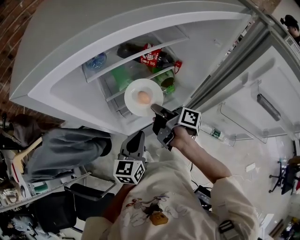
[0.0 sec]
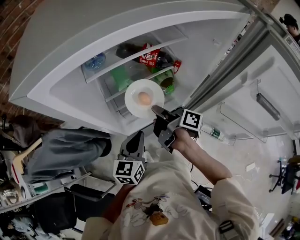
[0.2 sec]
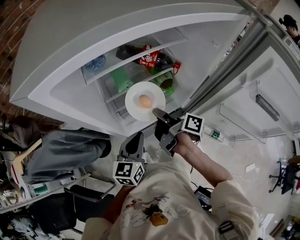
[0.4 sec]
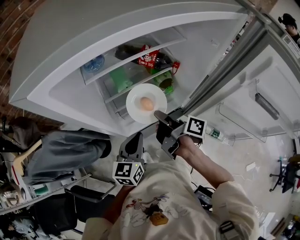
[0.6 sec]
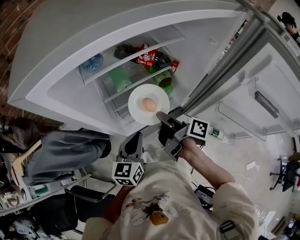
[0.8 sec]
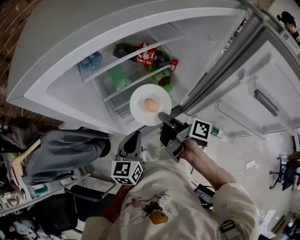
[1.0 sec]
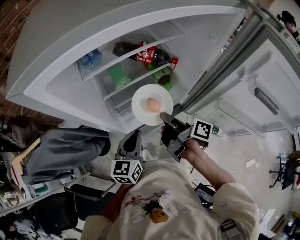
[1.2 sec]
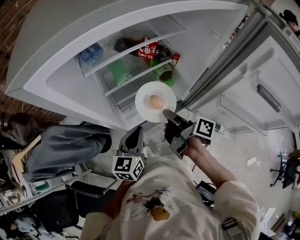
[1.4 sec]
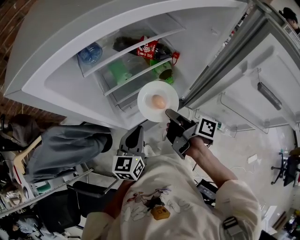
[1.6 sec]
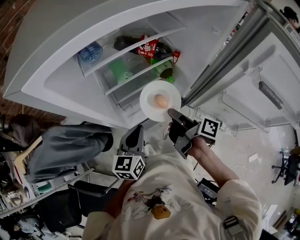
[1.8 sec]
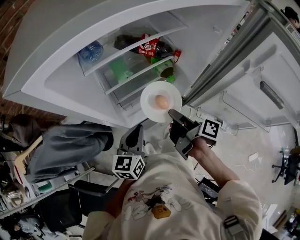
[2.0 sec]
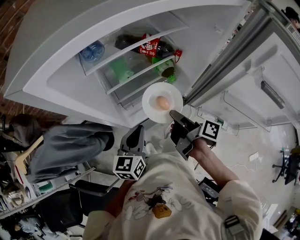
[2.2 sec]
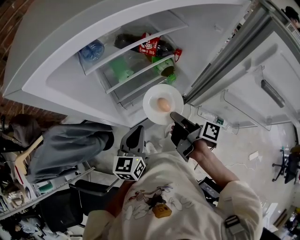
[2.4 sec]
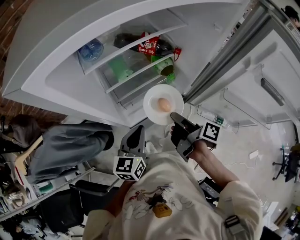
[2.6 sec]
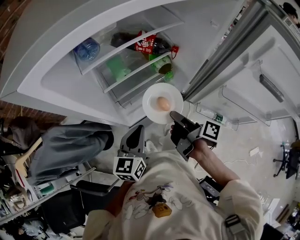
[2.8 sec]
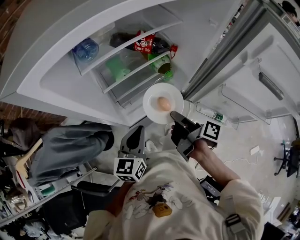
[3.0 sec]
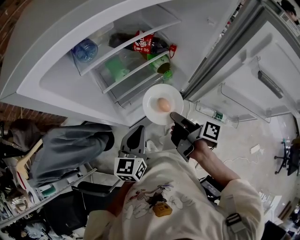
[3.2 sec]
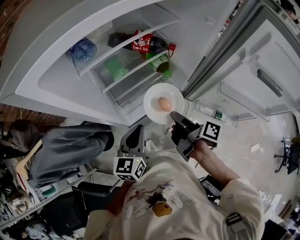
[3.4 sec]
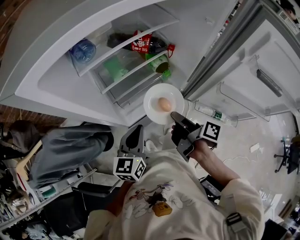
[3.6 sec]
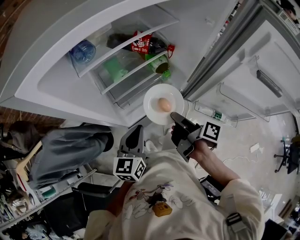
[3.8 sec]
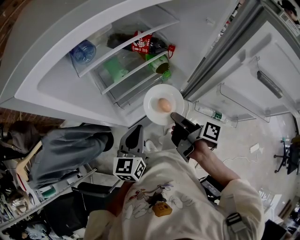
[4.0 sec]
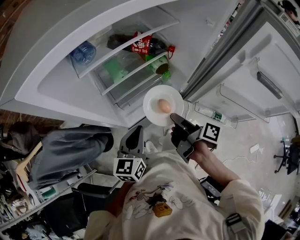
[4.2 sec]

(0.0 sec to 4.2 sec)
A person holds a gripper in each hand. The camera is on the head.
0.0 sec - 1.4 sec: The right gripper goes some 5 cm backward.
1.4 sec - 2.8 sec: The grippers stay close to where they were, moving slightly.
2.8 sec - 4.2 sec: Neither gripper changes place.

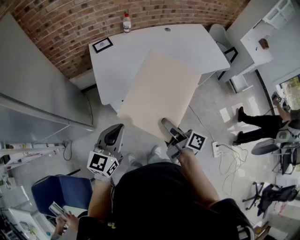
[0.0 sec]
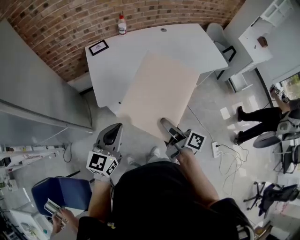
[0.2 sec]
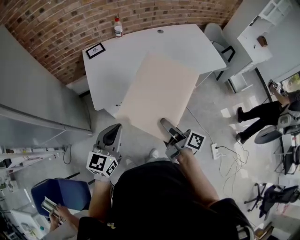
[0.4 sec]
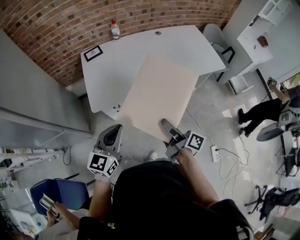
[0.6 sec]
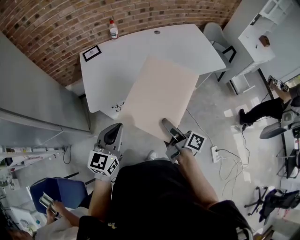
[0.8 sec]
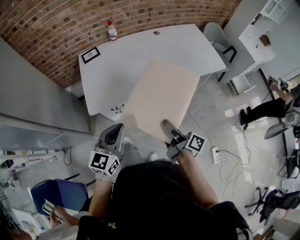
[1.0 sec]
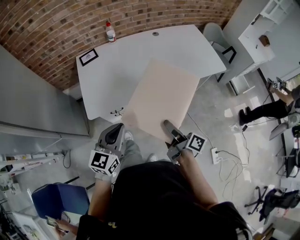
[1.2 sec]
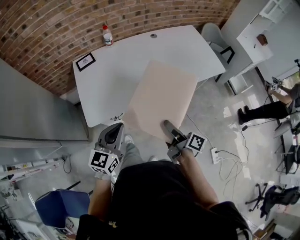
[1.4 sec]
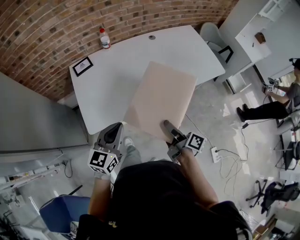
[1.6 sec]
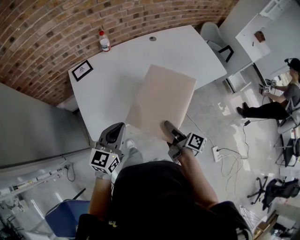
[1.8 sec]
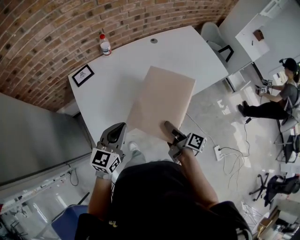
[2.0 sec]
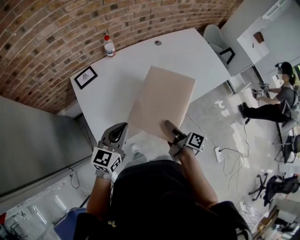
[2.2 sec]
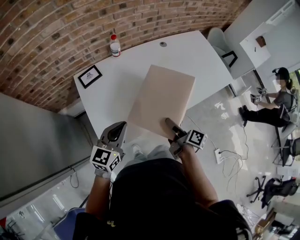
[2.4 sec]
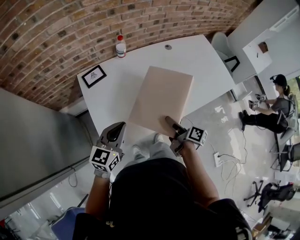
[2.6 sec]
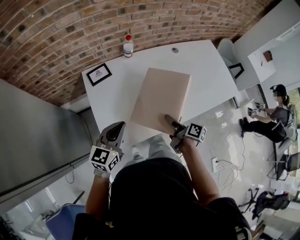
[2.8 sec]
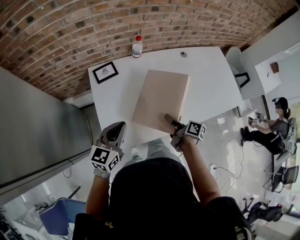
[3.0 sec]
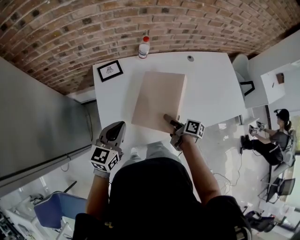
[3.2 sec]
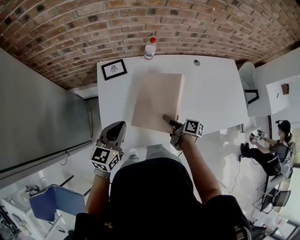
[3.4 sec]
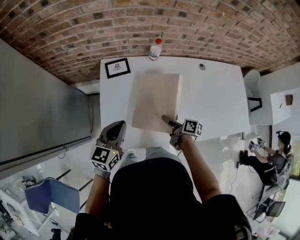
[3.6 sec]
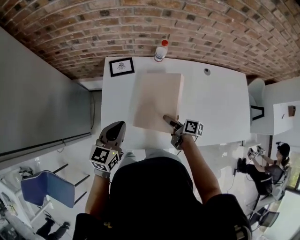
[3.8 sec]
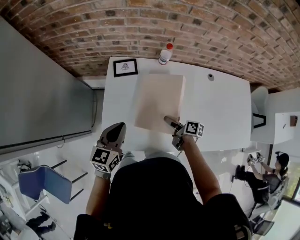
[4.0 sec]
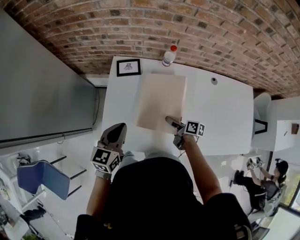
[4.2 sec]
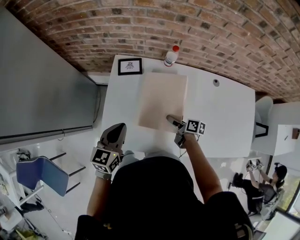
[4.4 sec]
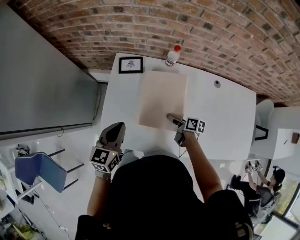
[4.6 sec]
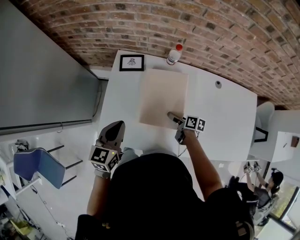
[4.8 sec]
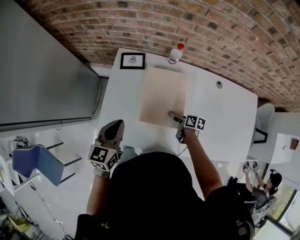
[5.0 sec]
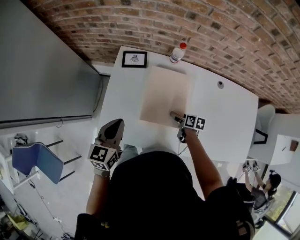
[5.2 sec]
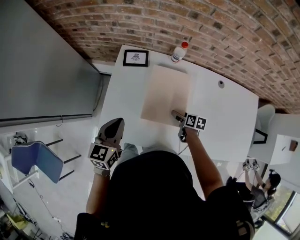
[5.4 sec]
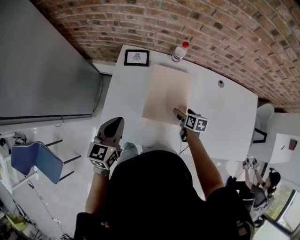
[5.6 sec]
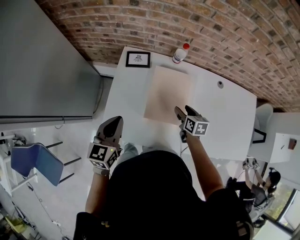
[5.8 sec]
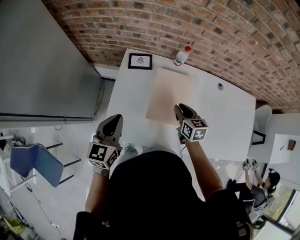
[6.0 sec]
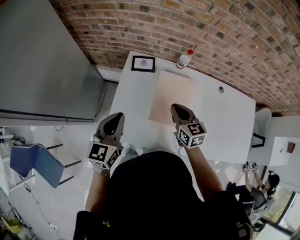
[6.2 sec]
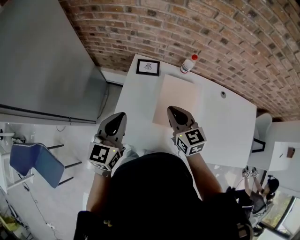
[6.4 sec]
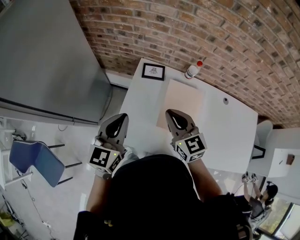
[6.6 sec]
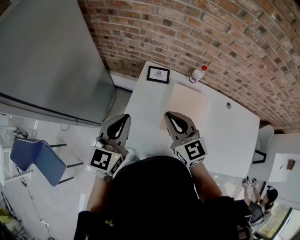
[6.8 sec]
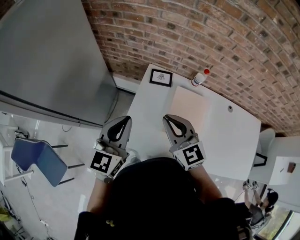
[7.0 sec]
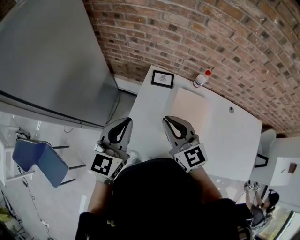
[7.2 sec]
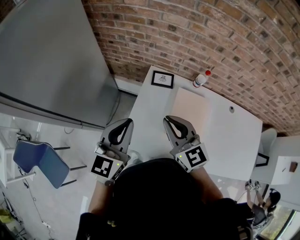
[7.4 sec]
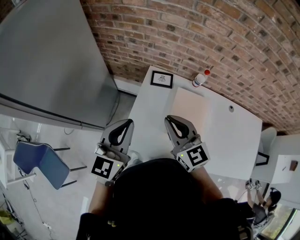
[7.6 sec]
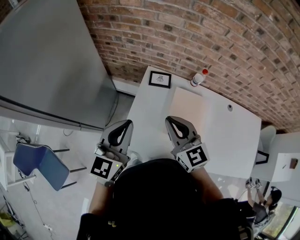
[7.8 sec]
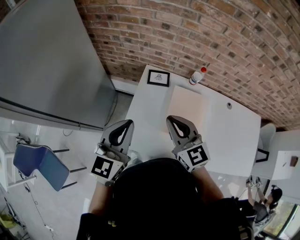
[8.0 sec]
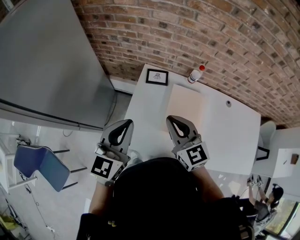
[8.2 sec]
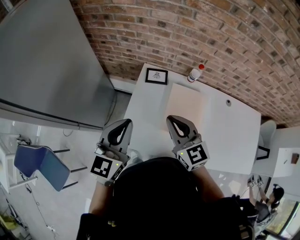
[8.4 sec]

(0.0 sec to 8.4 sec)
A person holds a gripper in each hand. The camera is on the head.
0.0 sec - 1.4 sec: The left gripper is displaced forward and to the right by roughly 20 cm. Meanwhile the right gripper shifts approximately 15 cm to the right and forward.
1.4 sec - 2.8 sec: Both grippers move forward and to the left, approximately 25 cm.
2.8 sec - 4.2 sec: The left gripper ends up about 5 cm from where it was, and turns by approximately 30 degrees. Meanwhile the right gripper ends up approximately 20 cm from where it was, and changes its angle by roughly 40 degrees.
4.2 sec - 5.6 sec: The right gripper shifts approximately 5 cm to the right, and turns by some 30 degrees.
5.6 sec - 7.0 sec: The right gripper moves upward and to the left, roughly 40 cm, tips its fingers upward by roughly 40 degrees, and closes. The left gripper goes some 15 cm upward and to the left.
7.0 sec - 8.4 sec: The grippers make only small movements.

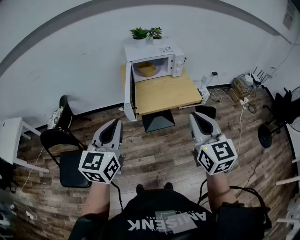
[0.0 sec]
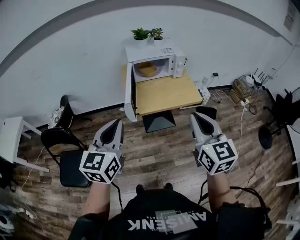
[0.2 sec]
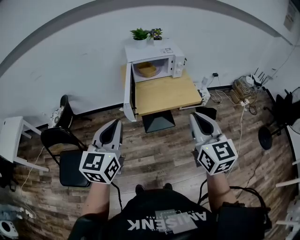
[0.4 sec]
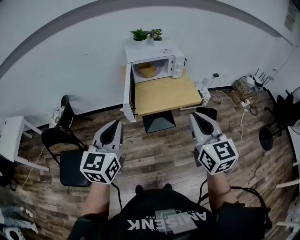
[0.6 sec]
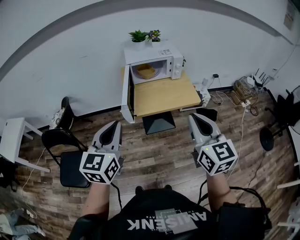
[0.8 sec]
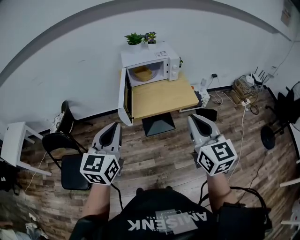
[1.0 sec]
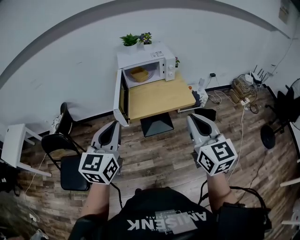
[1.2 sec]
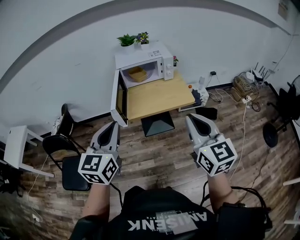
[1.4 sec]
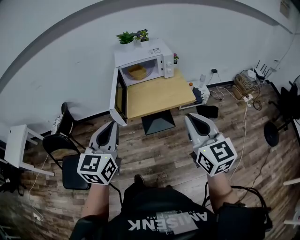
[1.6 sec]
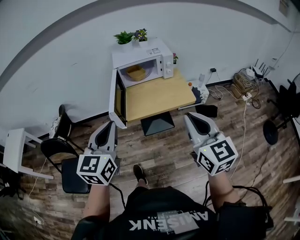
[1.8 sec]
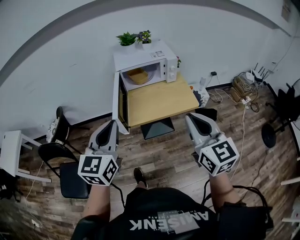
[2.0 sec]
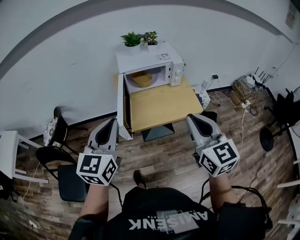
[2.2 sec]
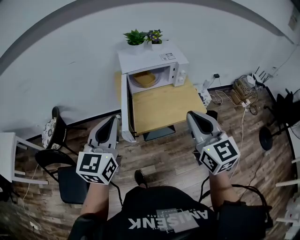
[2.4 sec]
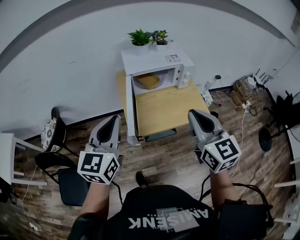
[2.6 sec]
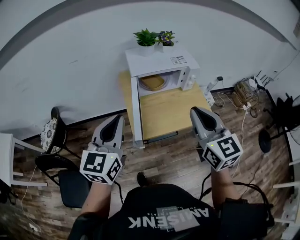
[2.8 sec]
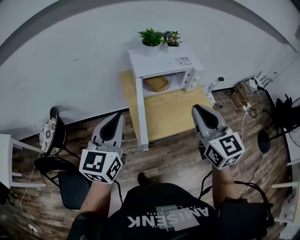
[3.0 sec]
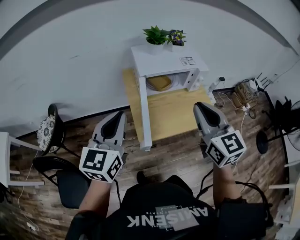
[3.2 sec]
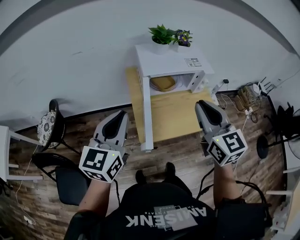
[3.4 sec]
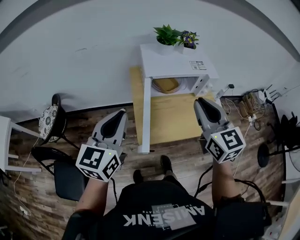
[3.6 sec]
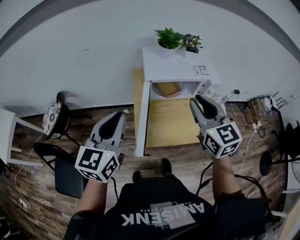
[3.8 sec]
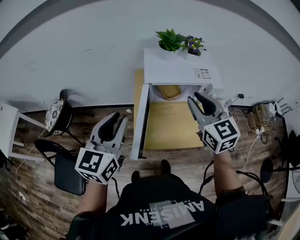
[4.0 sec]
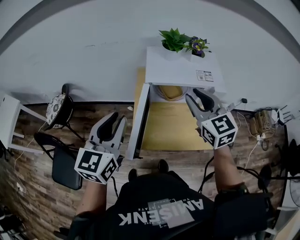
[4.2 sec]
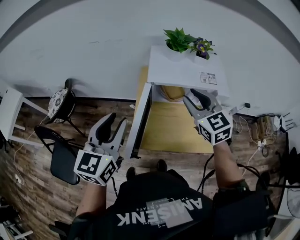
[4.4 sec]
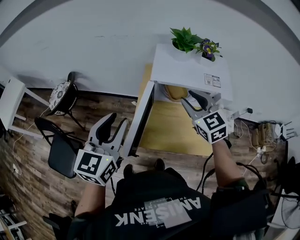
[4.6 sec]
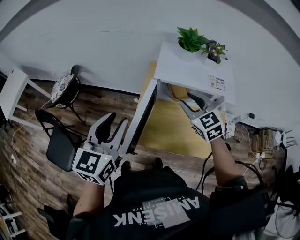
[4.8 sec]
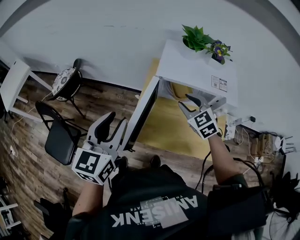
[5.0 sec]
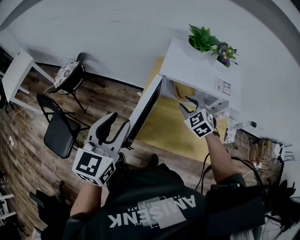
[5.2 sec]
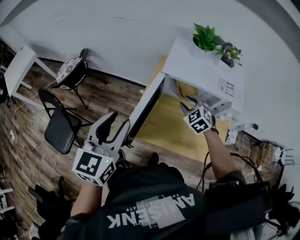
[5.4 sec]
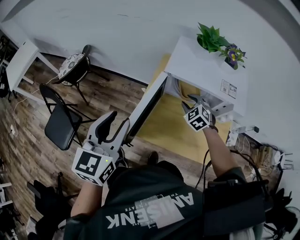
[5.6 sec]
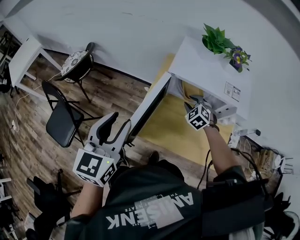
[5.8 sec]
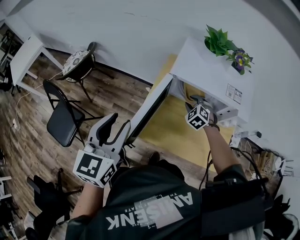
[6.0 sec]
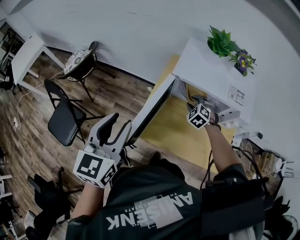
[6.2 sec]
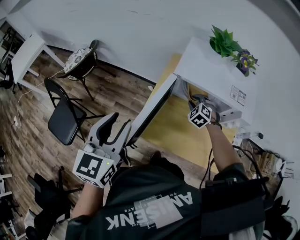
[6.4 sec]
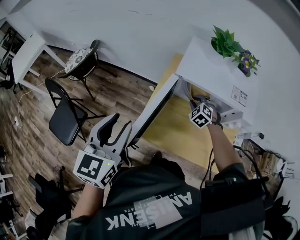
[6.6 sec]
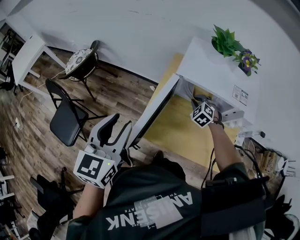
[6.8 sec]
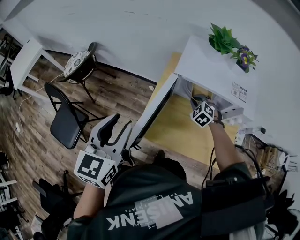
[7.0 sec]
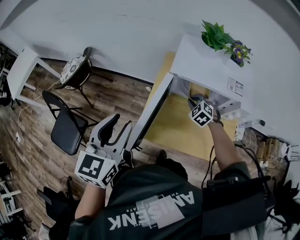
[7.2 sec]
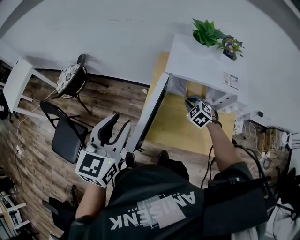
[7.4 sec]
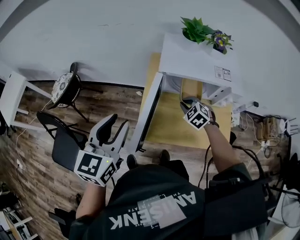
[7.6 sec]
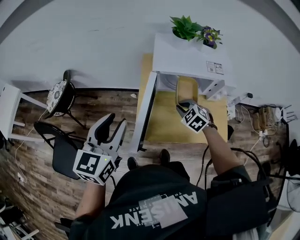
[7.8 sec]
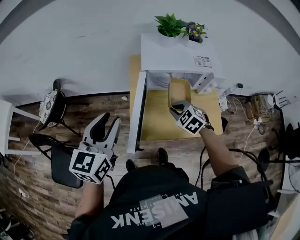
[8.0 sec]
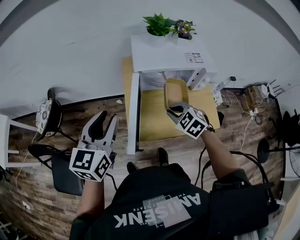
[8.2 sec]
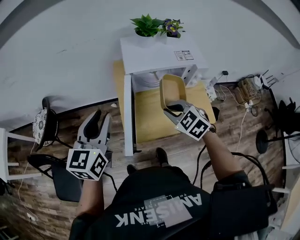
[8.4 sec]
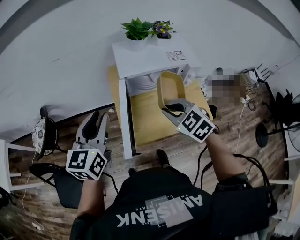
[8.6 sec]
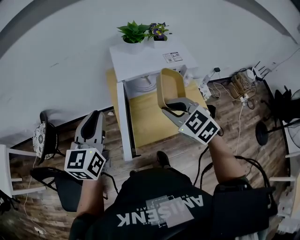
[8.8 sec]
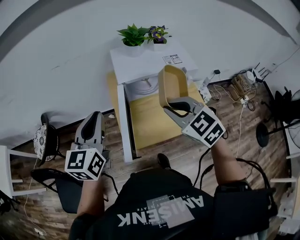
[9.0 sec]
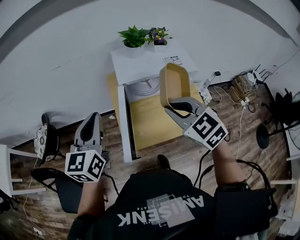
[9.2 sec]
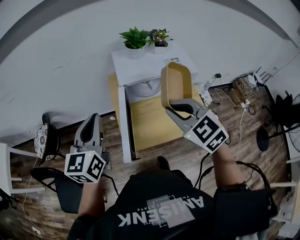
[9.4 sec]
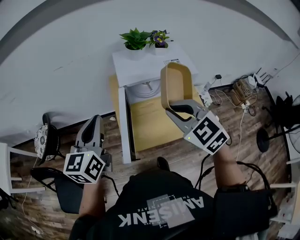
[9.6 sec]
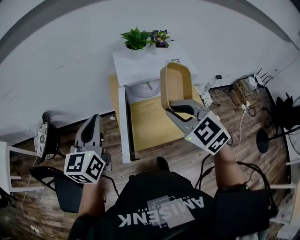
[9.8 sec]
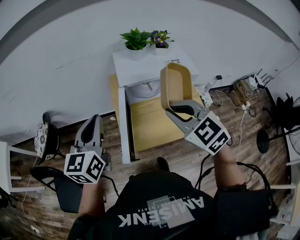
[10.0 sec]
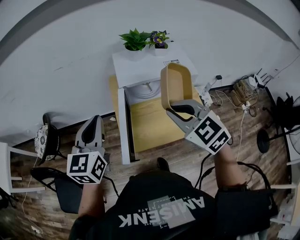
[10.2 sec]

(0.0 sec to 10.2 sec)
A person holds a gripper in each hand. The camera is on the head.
0.0 sec - 1.4 sec: The two grippers go about 10 cm to the right.
1.4 sec - 3.0 sec: The grippers both shift forward and to the left by approximately 30 cm.
3.0 sec - 4.4 sec: The left gripper moves forward and to the right, about 10 cm, and opens its fingers. Meanwhile the right gripper heads forward, covering about 20 cm, turns by some 30 degrees, and opens its fingers.
4.4 sec - 5.8 sec: The left gripper changes place by some 5 cm. The right gripper is displaced downward by roughly 25 cm, and angles its fingers downward, by some 30 degrees.
5.8 sec - 7.2 sec: The right gripper closes.
7.2 sec - 8.8 sec: The left gripper is displaced forward by roughly 5 cm, changes its angle by some 20 degrees, and closes up. The right gripper heads upward and backward, covering approximately 30 cm, and turns by about 30 degrees.
8.8 sec - 10.2 sec: The right gripper shifts roughly 5 cm upward.
